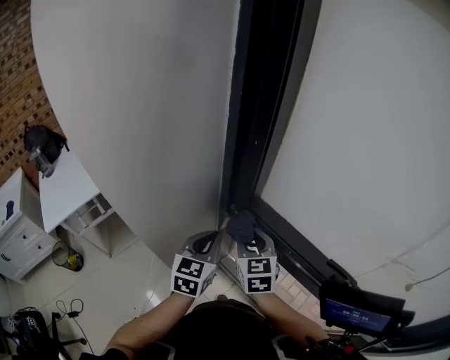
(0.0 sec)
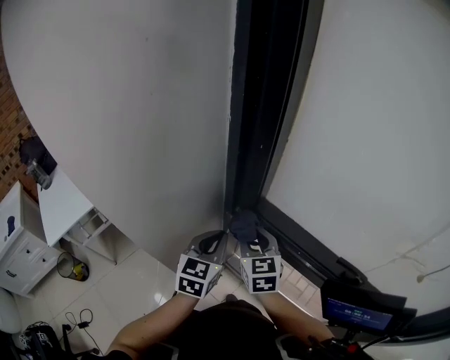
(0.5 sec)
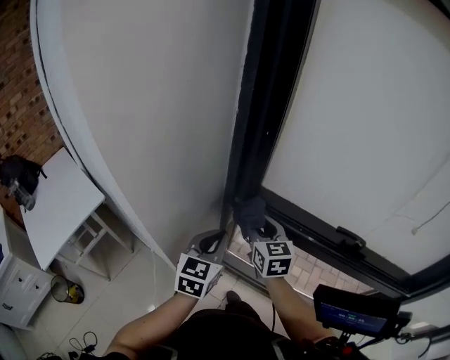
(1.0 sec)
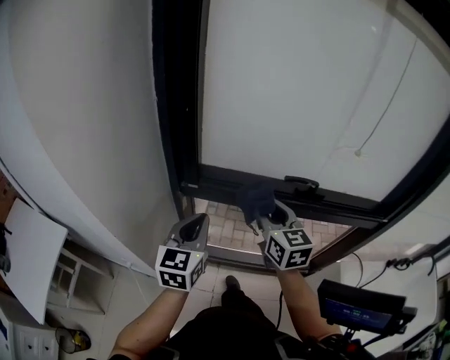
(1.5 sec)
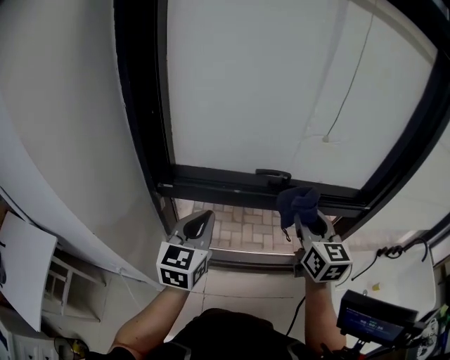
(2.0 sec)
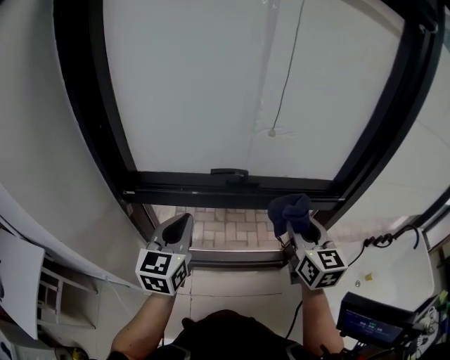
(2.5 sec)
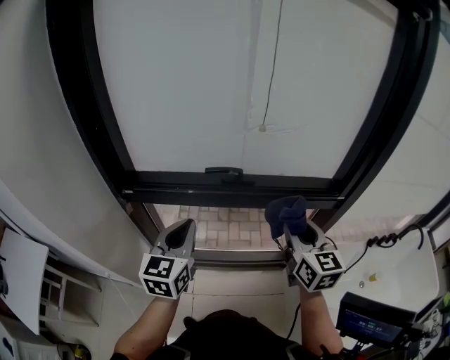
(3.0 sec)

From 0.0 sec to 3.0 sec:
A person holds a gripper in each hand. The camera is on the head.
From 0.0 sec to 1.5 sec: The right gripper ends up approximately 20 cm from where it was, and changes its angle by some 30 degrees. Meanwhile the left gripper shifts by about 10 cm, and rotates roughly 30 degrees.
From 1.5 sec to 3.0 sec: The right gripper goes roughly 30 cm to the right. The left gripper moves to the right, approximately 20 cm.

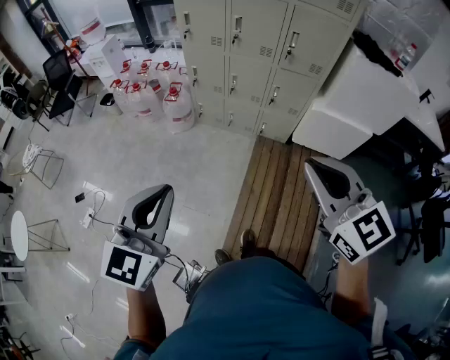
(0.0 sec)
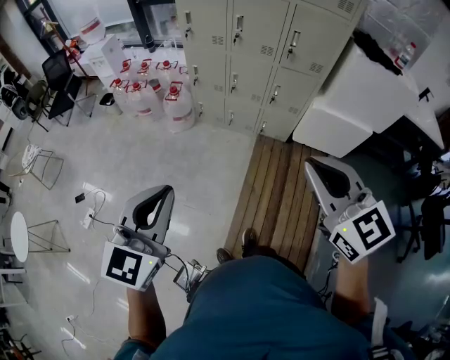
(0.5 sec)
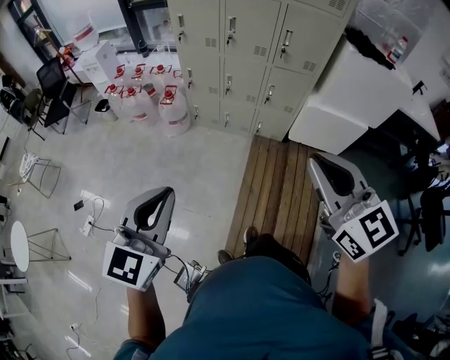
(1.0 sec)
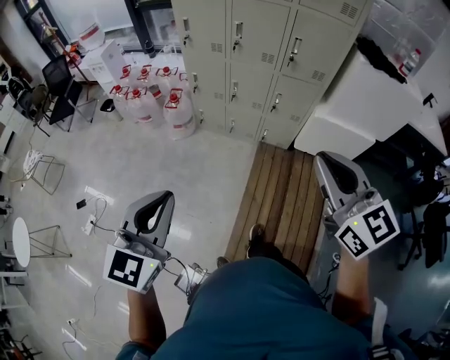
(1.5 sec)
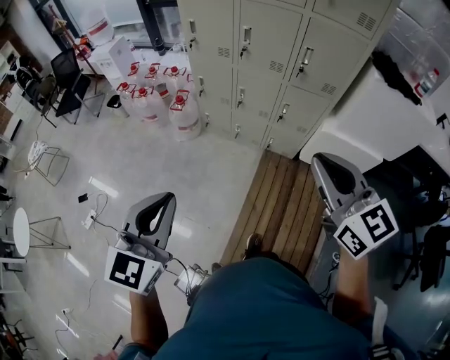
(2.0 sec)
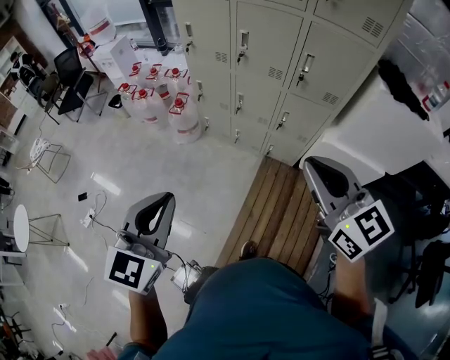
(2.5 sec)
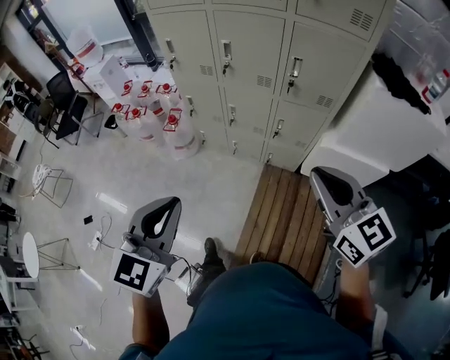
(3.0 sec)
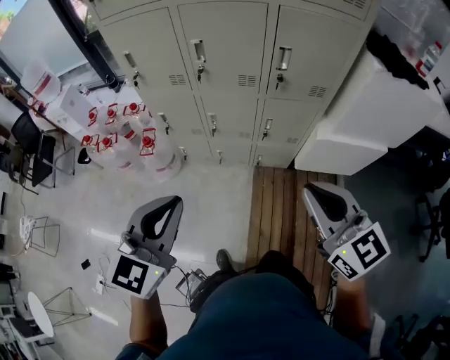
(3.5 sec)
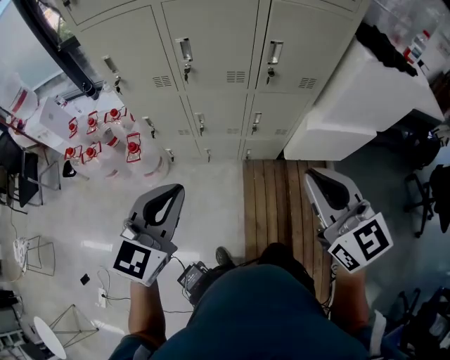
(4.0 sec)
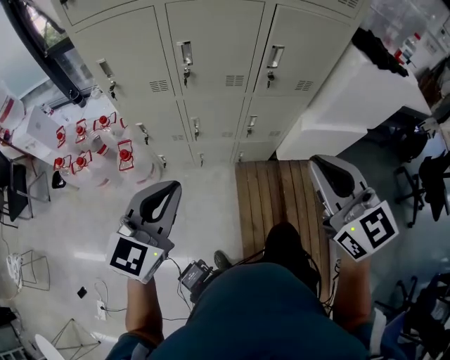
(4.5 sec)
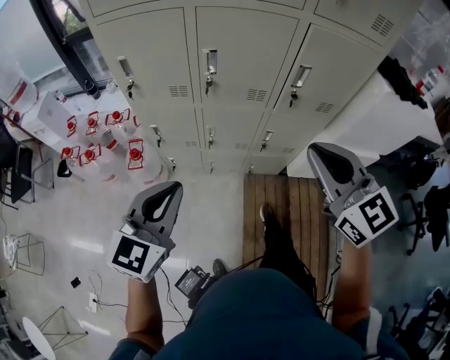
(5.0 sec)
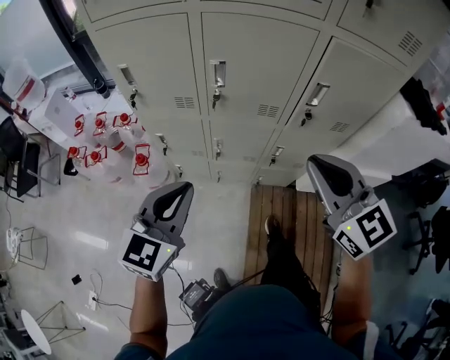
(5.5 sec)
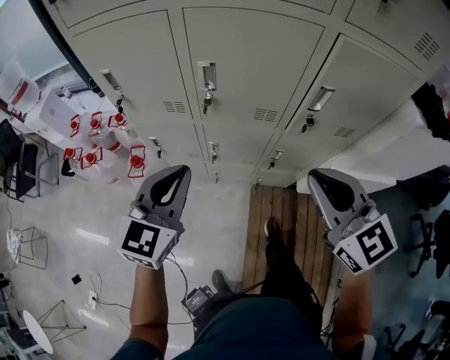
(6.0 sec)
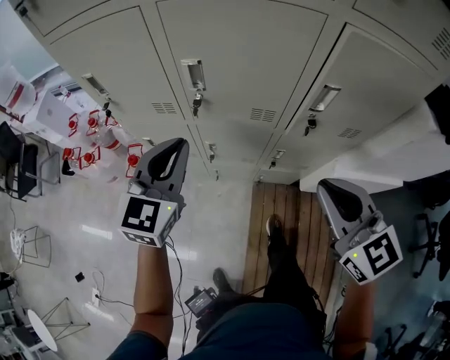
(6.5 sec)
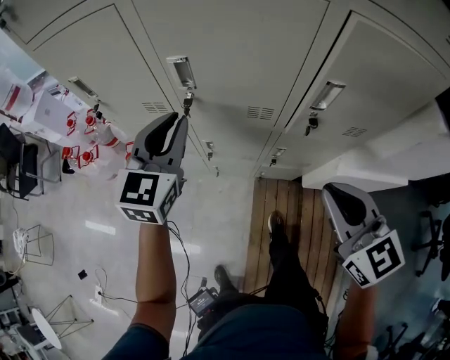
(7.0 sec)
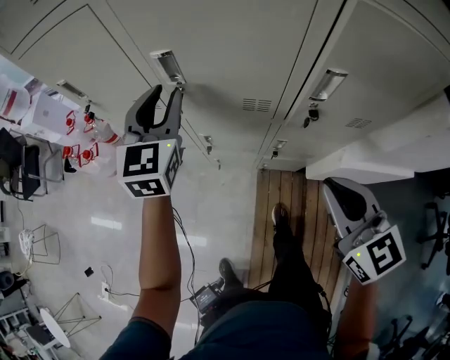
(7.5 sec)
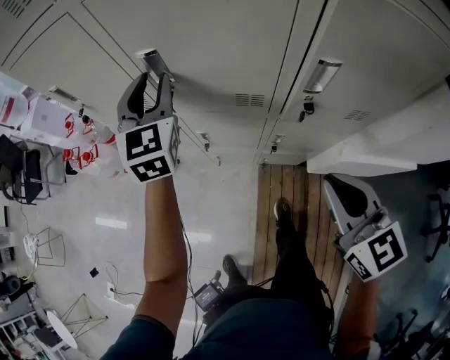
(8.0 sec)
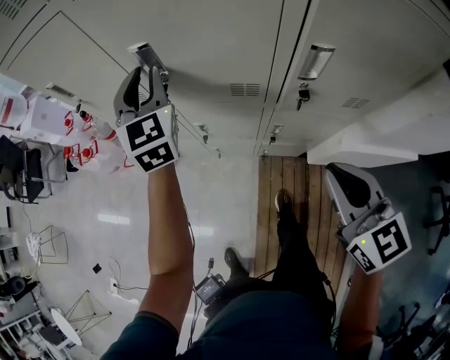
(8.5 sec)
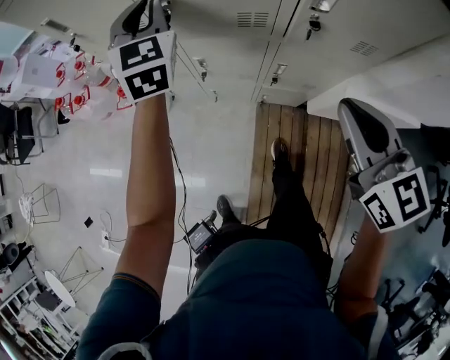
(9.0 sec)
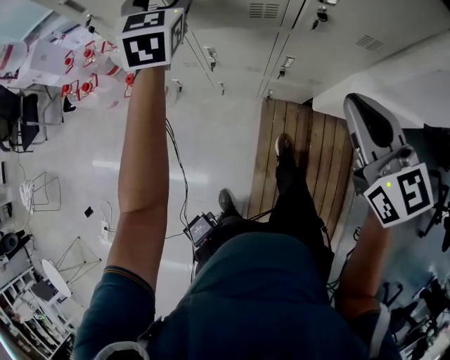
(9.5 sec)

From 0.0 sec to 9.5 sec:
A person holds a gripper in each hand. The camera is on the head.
From 0.0 sec to 2.0 sec: Both grippers move forward, approximately 15 cm.
From 2.0 sec to 4.0 sec: The left gripper ends up approximately 40 cm from where it was, and swivels approximately 30 degrees. Meanwhile the right gripper changes place by roughly 25 cm.
From 4.0 sec to 5.5 sec: The two grippers go some 20 cm forward.
From 5.5 sec to 7.5 sec: The right gripper shifts some 20 cm downward, to the right and forward, while the left gripper goes some 30 cm forward, turns by some 20 degrees, and opens.
From 7.5 sec to 9.5 sec: The left gripper opens up. The right gripper heads backward, covering approximately 5 cm.

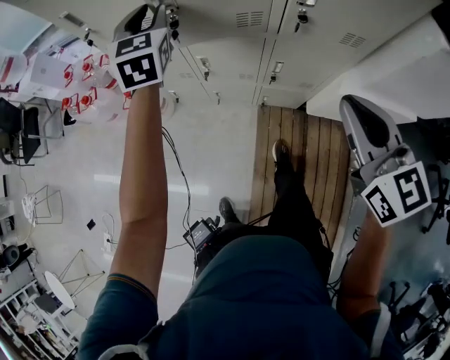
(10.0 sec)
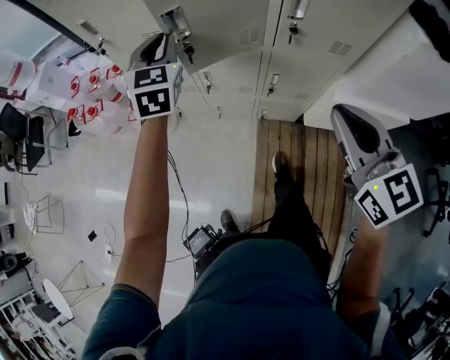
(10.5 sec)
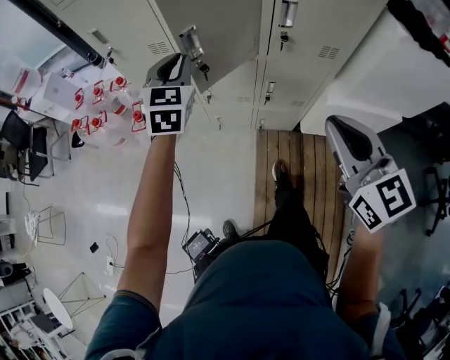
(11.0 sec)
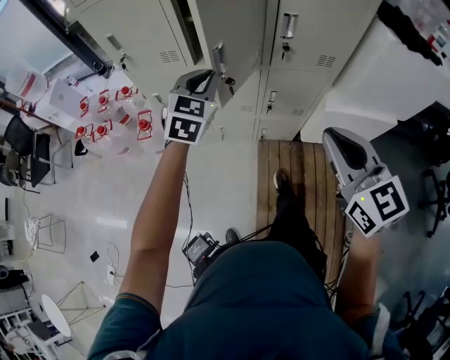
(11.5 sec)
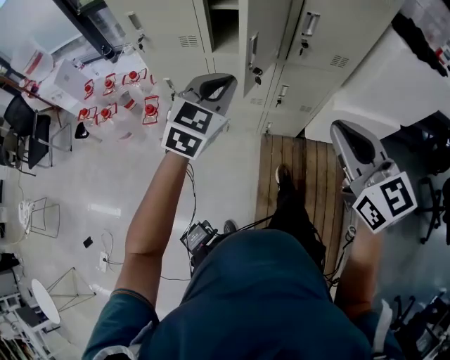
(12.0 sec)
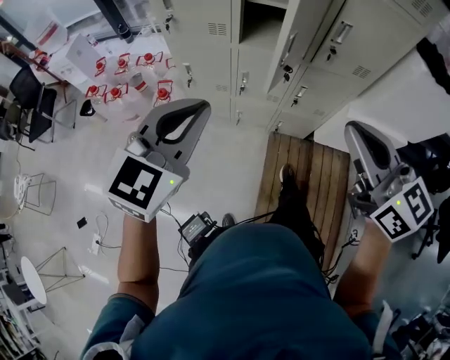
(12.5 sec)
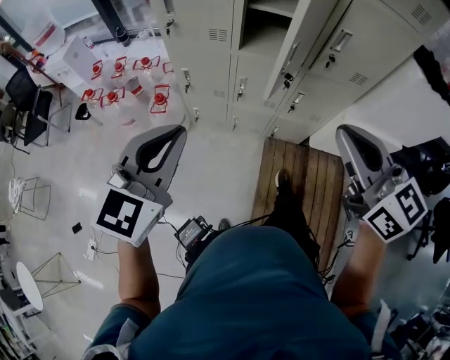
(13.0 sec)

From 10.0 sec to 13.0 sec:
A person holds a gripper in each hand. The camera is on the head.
From 10.0 sec to 11.5 sec: The right gripper shifts roughly 15 cm backward, upward and to the left. The left gripper is displaced backward by roughly 20 cm, turns by about 20 degrees, and closes.
From 11.5 sec to 13.0 sec: The right gripper travels to the left and upward by some 15 cm; the left gripper shifts some 30 cm backward and to the left.

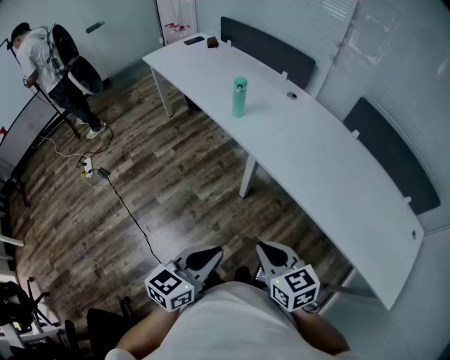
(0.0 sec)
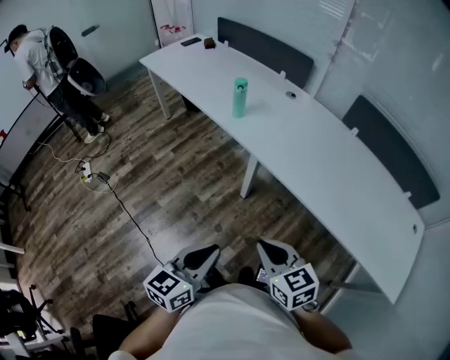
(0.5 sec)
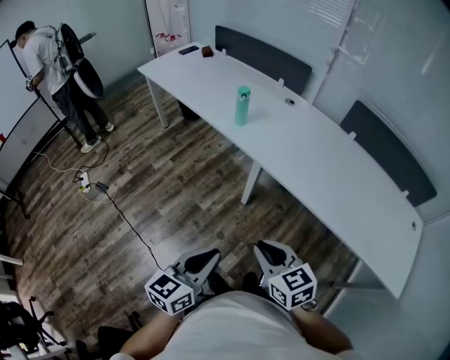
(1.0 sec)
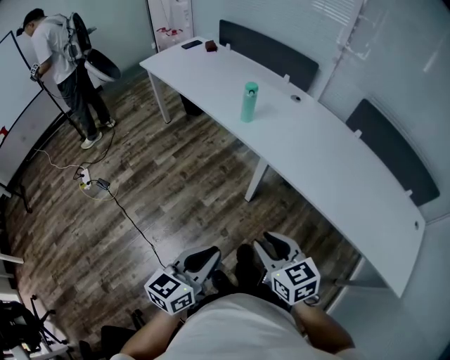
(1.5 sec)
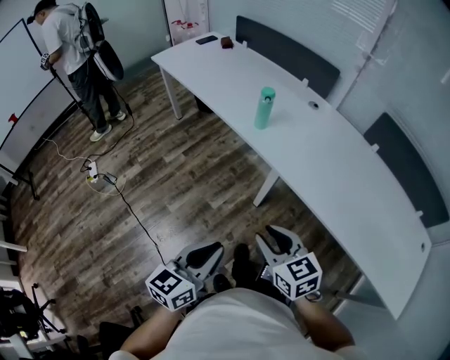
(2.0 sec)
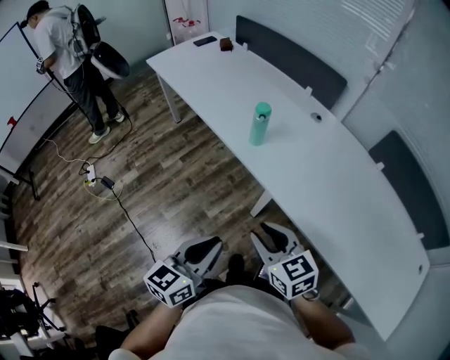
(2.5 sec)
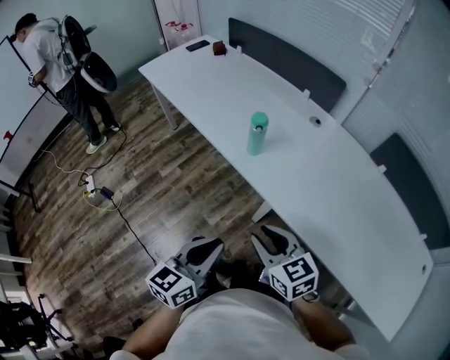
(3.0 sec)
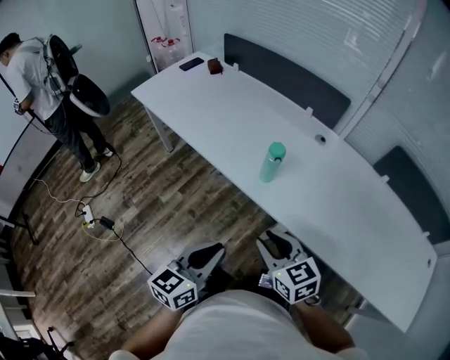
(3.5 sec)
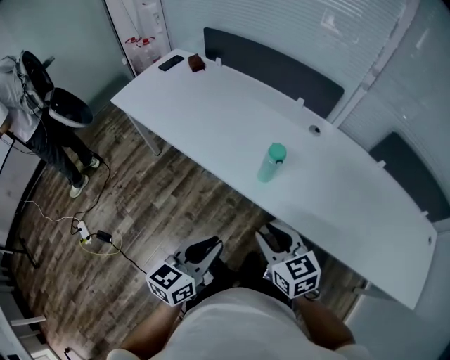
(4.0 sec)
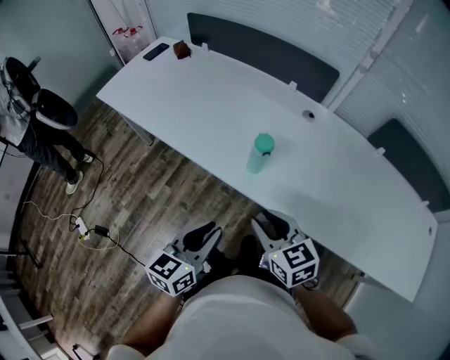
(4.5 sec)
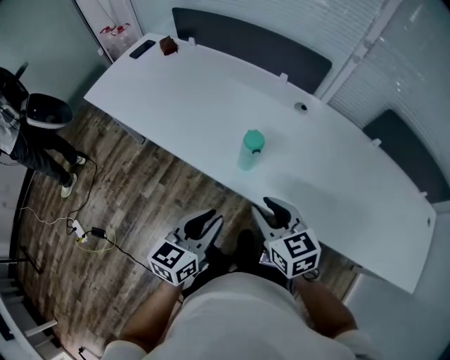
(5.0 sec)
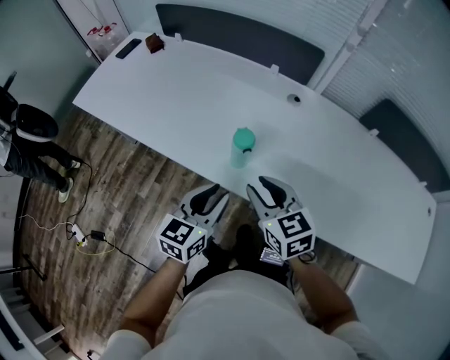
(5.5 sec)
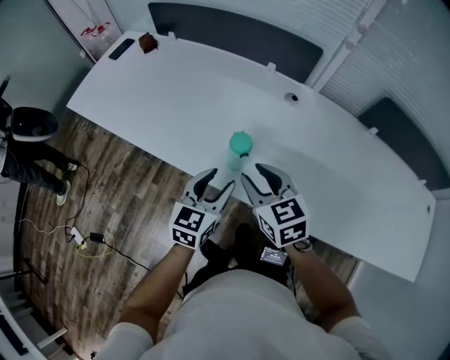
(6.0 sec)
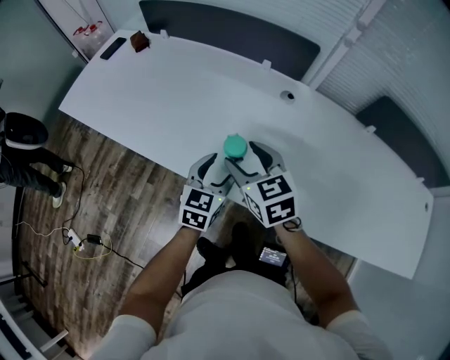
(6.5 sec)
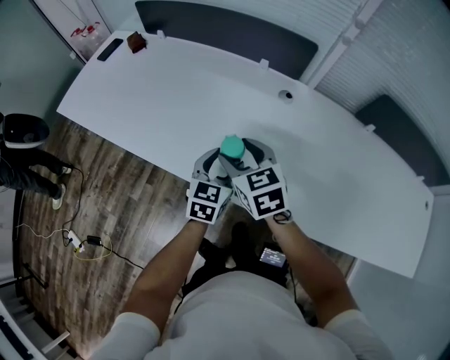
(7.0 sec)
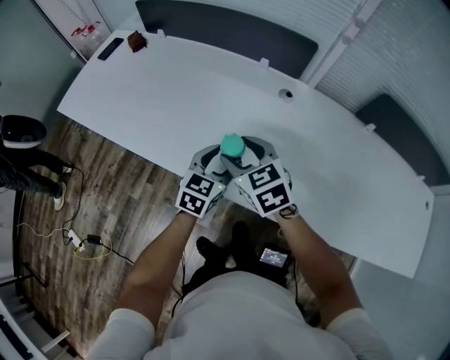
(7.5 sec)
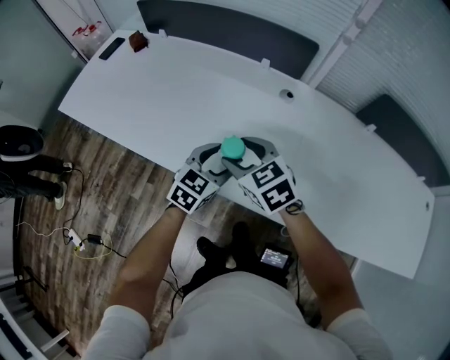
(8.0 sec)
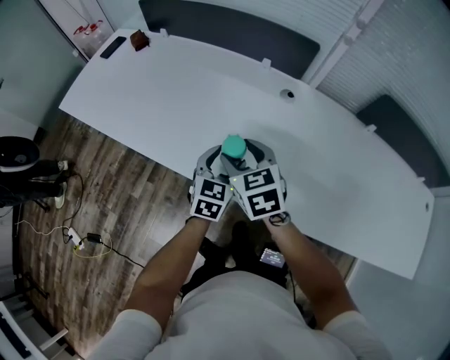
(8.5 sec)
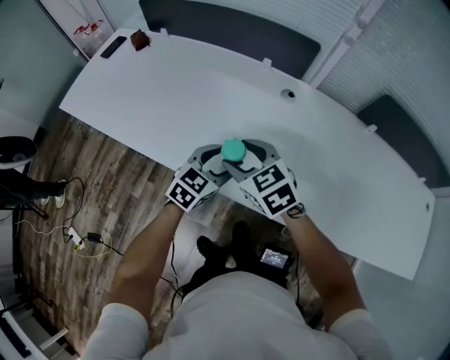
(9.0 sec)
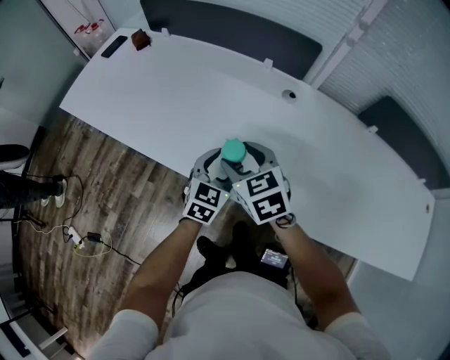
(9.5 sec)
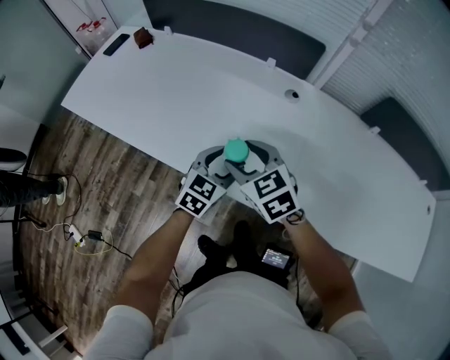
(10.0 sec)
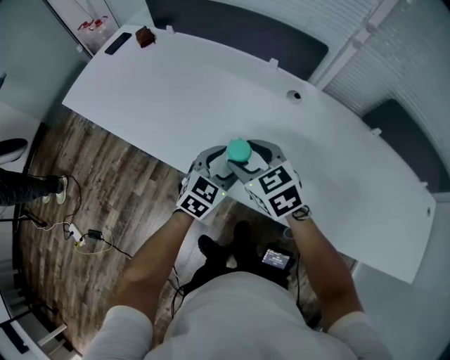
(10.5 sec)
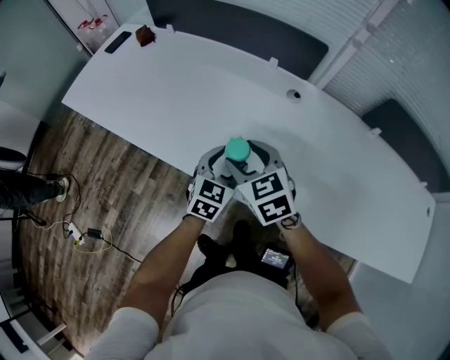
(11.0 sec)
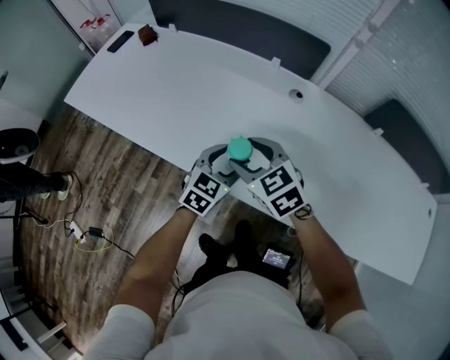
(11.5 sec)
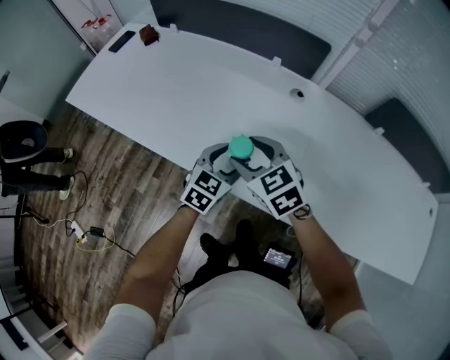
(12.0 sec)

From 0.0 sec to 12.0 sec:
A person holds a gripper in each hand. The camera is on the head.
From 0.0 sec to 2.0 sec: The left gripper moves to the left and forward, approximately 15 cm; the right gripper goes roughly 15 cm forward and to the left.
From 2.0 sec to 4.0 sec: The two grippers go about 30 cm forward.
From 4.0 sec to 6.0 sec: The left gripper goes about 25 cm forward and to the right, and opens; the right gripper goes roughly 15 cm forward.
From 6.0 sec to 8.0 sec: The grippers both shift forward by about 5 cm. The left gripper rotates approximately 20 degrees. Meanwhile the right gripper opens its fingers.
From 8.0 sec to 12.0 sec: The grippers stay close to where they were, moving slightly.
